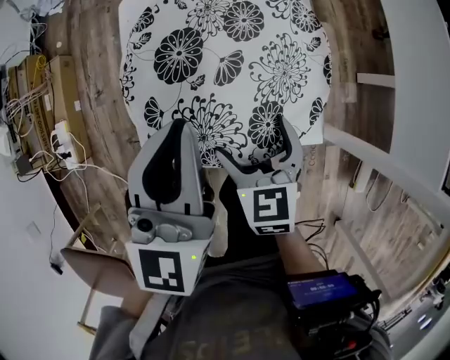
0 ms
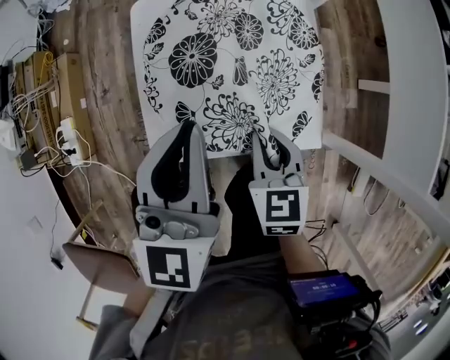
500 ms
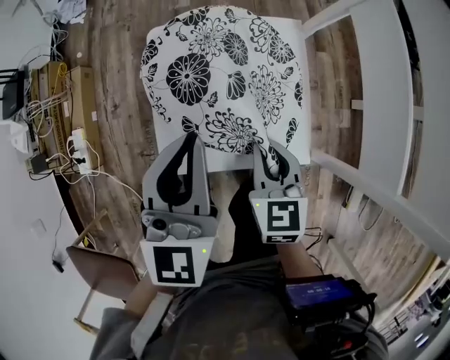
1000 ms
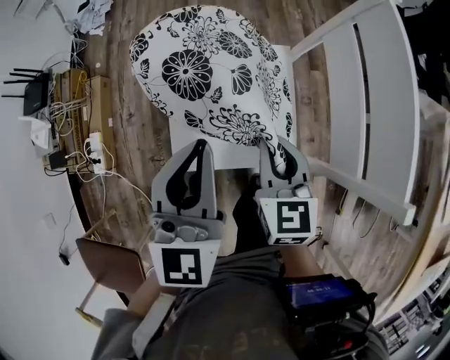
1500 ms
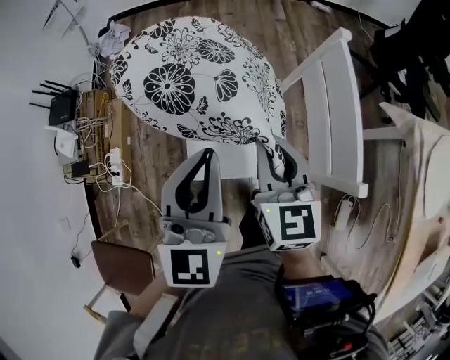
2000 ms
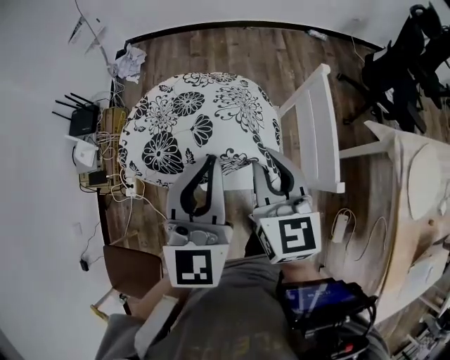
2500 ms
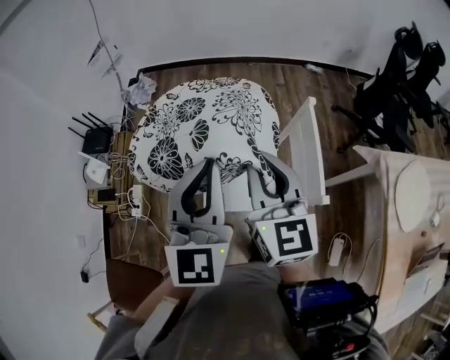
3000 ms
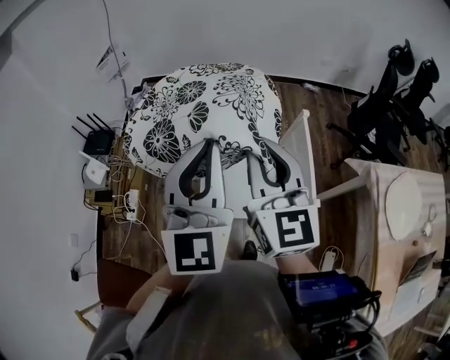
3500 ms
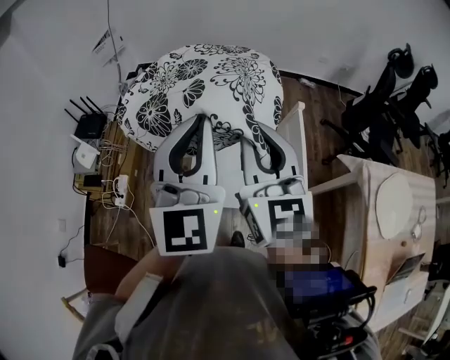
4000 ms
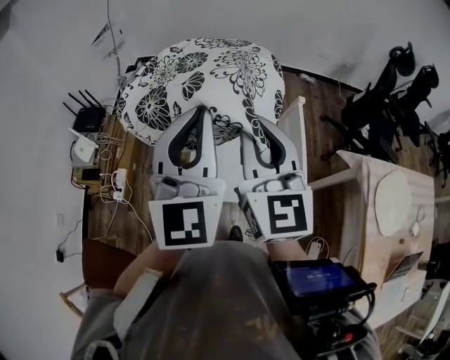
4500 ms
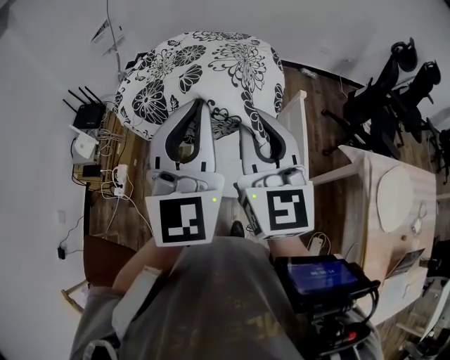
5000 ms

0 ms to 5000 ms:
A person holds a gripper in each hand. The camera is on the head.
0 ms to 2500 ms: Both grippers move upward, some 50 cm. The right gripper swivels roughly 30 degrees, and closes up.
2500 ms to 5000 ms: Both grippers move upward, some 15 cm.

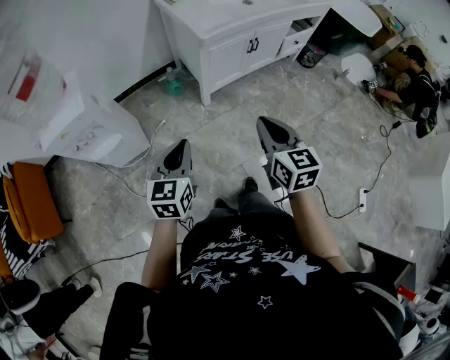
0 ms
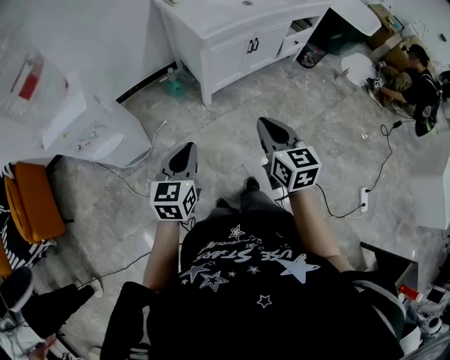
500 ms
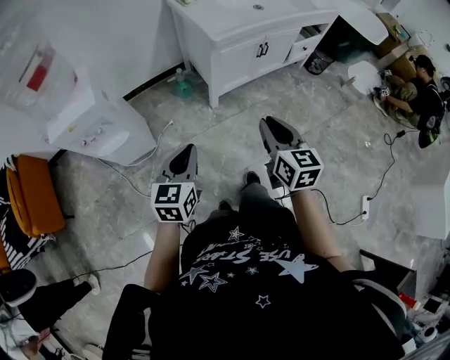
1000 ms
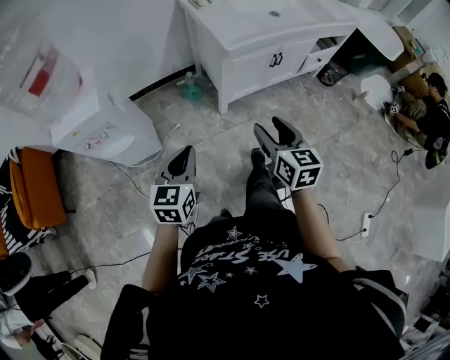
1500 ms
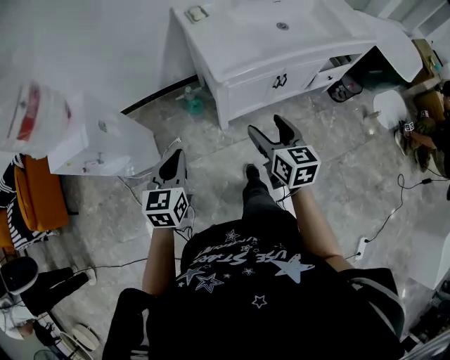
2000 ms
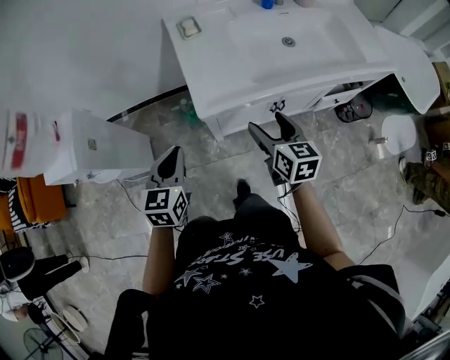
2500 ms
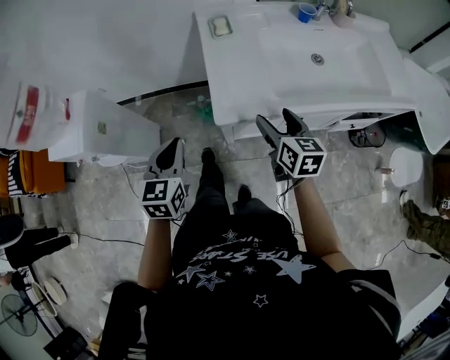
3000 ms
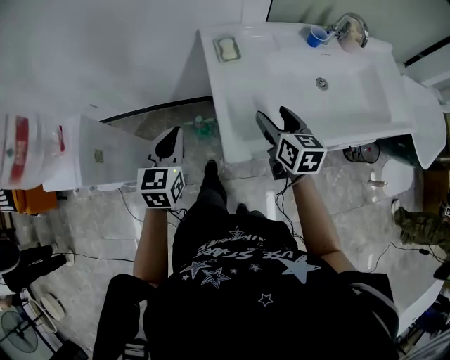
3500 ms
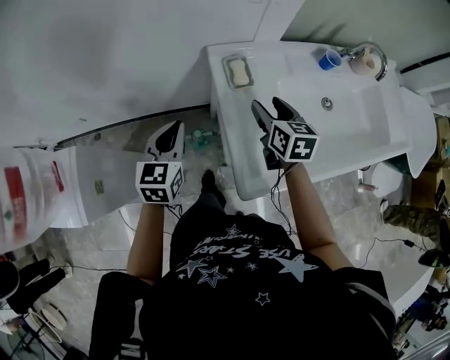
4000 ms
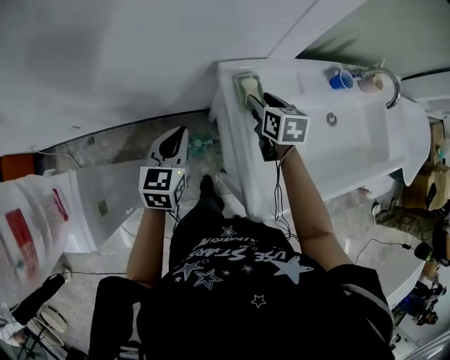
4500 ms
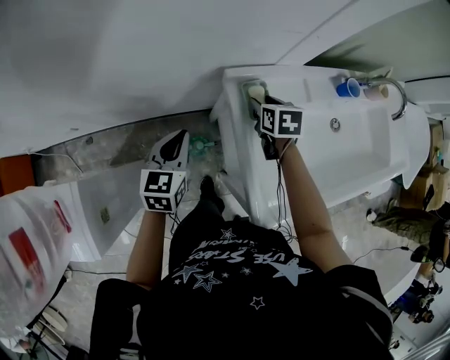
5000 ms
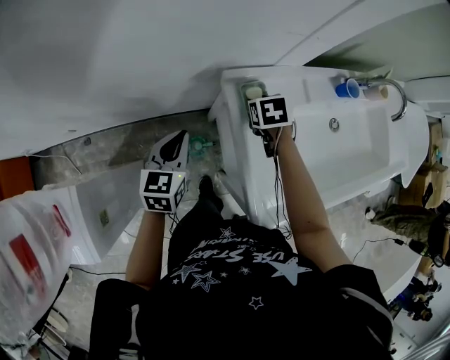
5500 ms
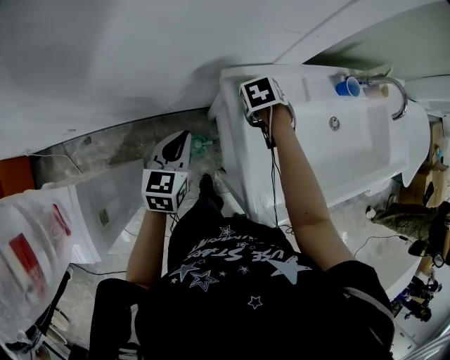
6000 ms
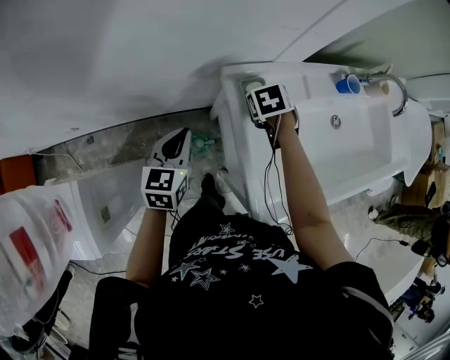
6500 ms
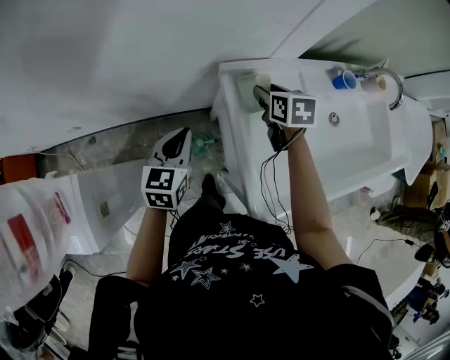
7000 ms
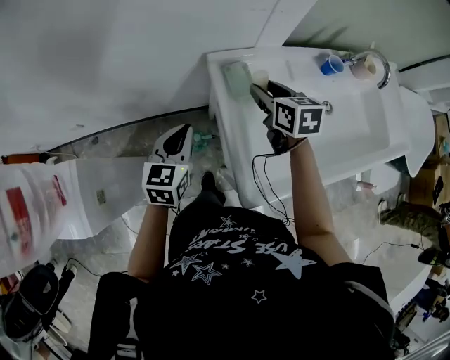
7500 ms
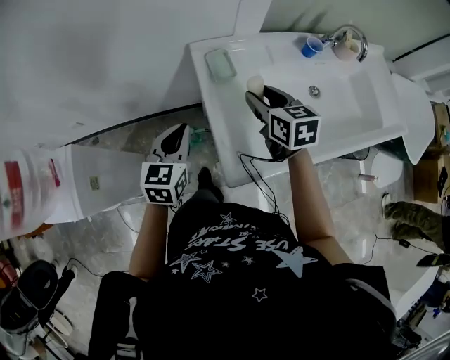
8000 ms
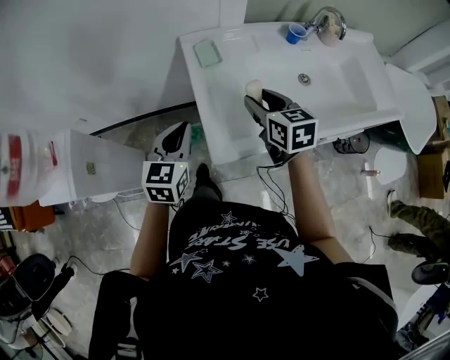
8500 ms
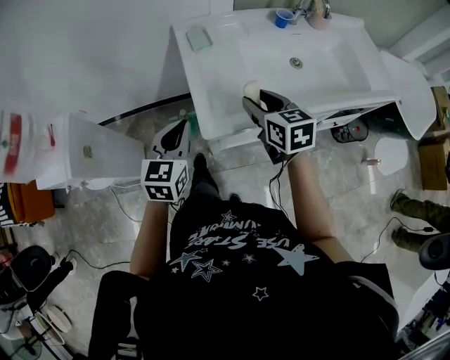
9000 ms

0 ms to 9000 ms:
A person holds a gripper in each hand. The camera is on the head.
0 ms to 2000 ms: The grippers both shift forward by some 20 cm. The right gripper opens its fingers.
2000 ms to 4500 ms: The two grippers travel together, forward, approximately 60 cm. The right gripper changes its angle by roughly 20 degrees, and closes its fingers.
7000 ms to 9000 ms: The right gripper travels backward by about 35 cm, and rotates approximately 20 degrees; the left gripper shifts about 30 cm backward and to the right.

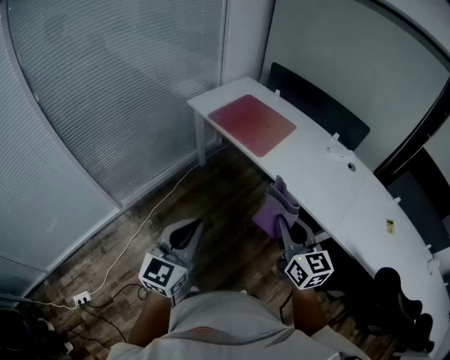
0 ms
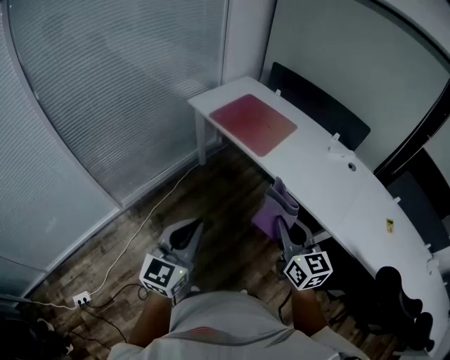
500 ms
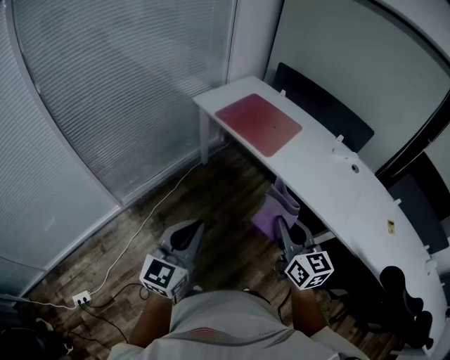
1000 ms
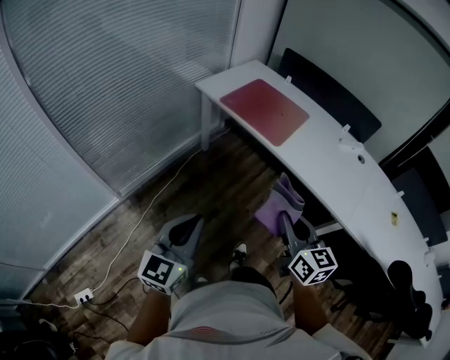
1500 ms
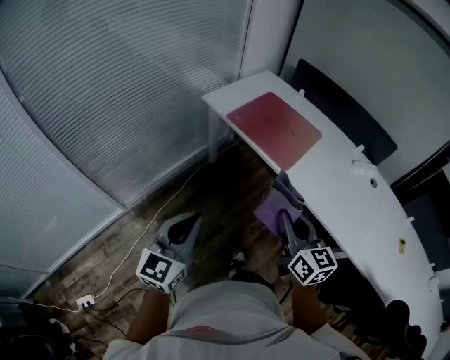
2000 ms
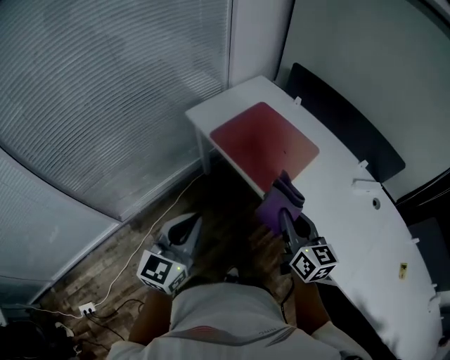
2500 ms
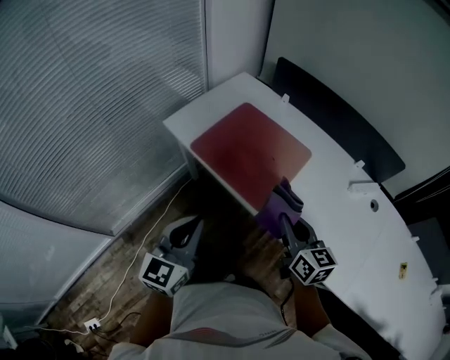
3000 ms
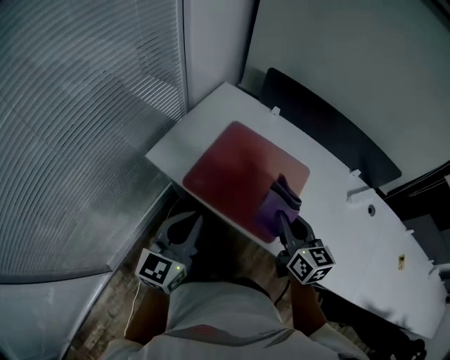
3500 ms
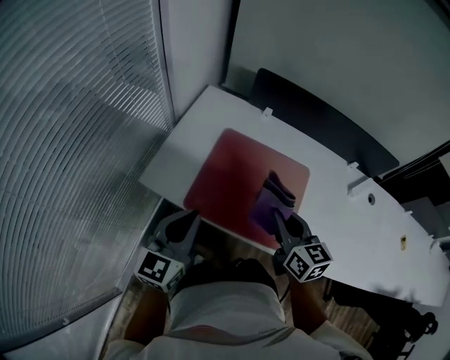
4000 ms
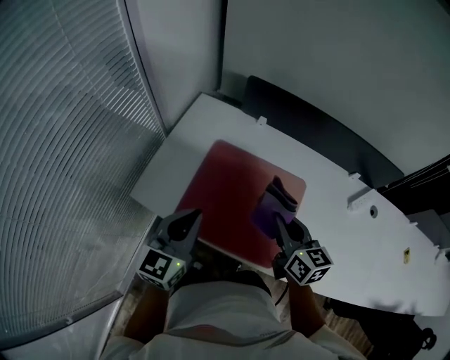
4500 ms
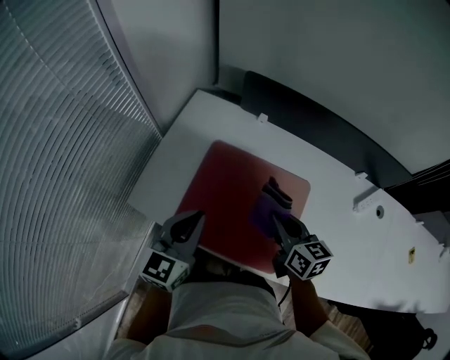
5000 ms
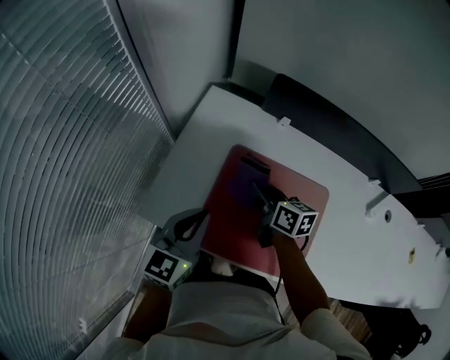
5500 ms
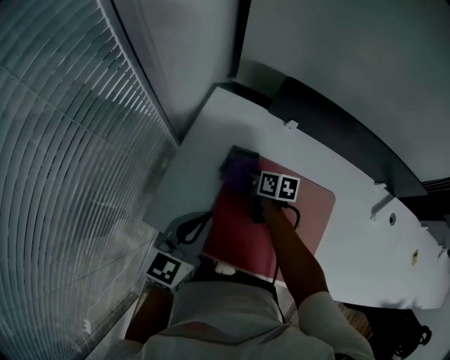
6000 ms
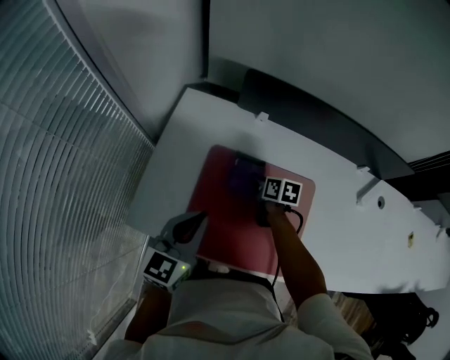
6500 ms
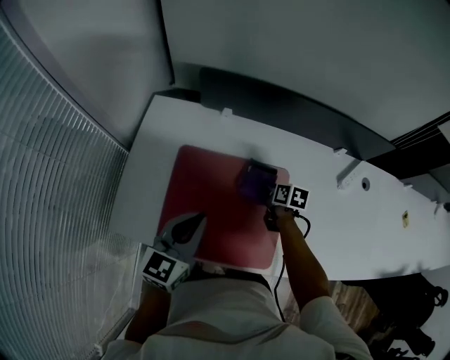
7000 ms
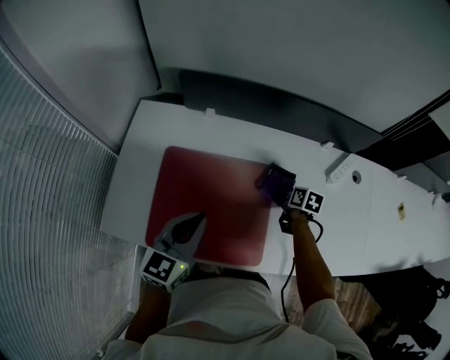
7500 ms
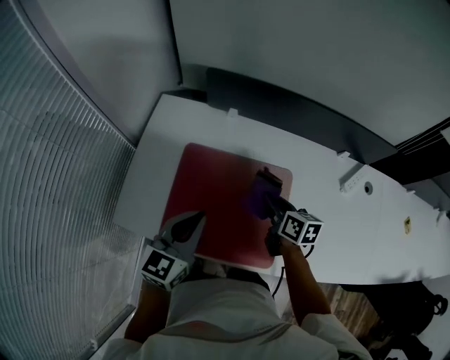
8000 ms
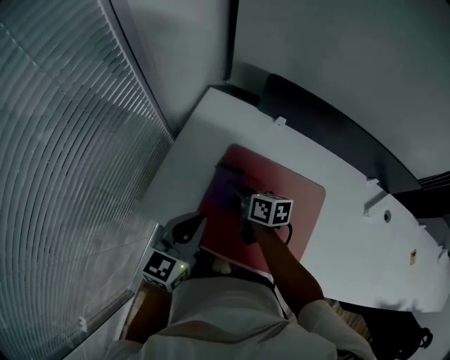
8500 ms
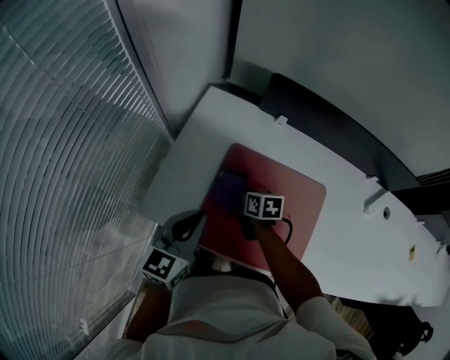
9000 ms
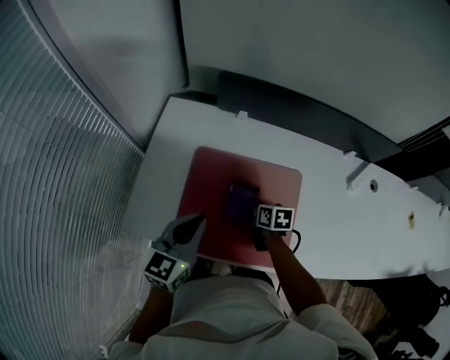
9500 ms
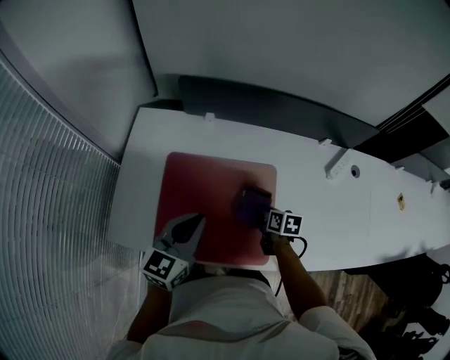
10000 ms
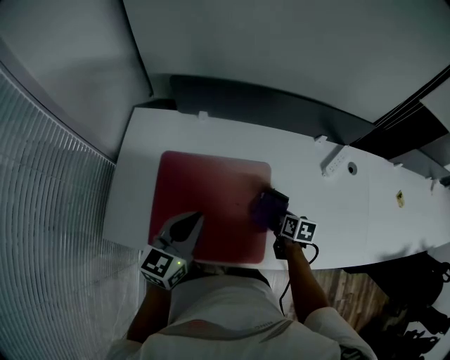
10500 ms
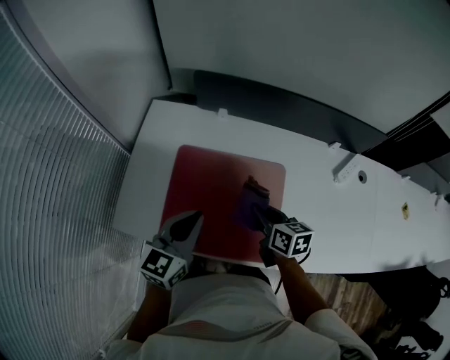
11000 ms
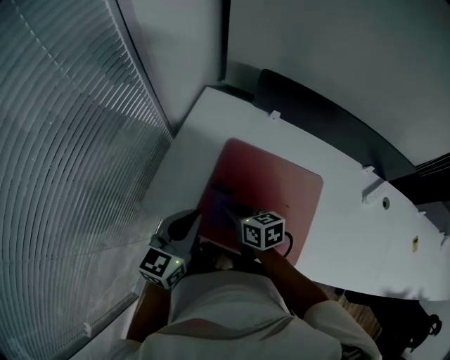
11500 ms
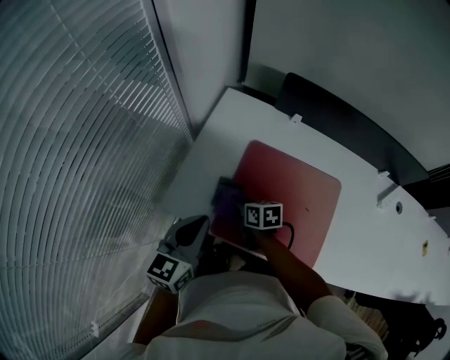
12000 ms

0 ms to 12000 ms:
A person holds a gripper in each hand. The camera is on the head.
0 ms to 2000 ms: Both grippers travel together forward and to the left, roughly 20 cm.
2000 ms to 4000 ms: Both grippers are carried forward, approximately 60 cm. The right gripper swivels approximately 20 degrees, while the left gripper turns by approximately 20 degrees.
4000 ms to 6000 ms: The right gripper travels forward and downward by some 40 cm, and turns by about 40 degrees, while the left gripper moves forward, about 20 cm.
6000 ms to 8000 ms: The right gripper shifts some 30 cm to the right and backward. Meanwhile the left gripper travels to the right by about 15 cm.
8000 ms to 10000 ms: The left gripper travels to the left and back again, roughly 15 cm each way; the right gripper goes roughly 10 cm downward, goes to the left and returns, some 25 cm each way, and swivels roughly 20 degrees.
10000 ms to 12000 ms: The right gripper travels upward and back again, roughly 10 cm each way, and swivels about 30 degrees. Meanwhile the left gripper ends up about 25 cm from where it was, and turns by some 20 degrees.

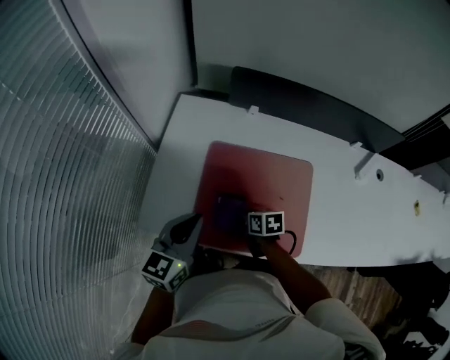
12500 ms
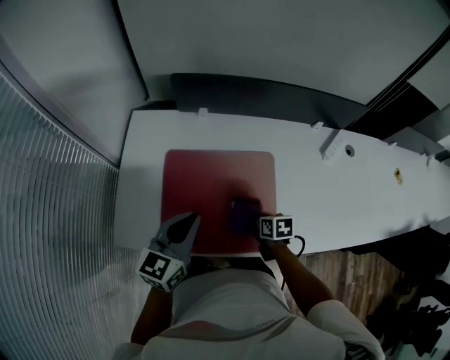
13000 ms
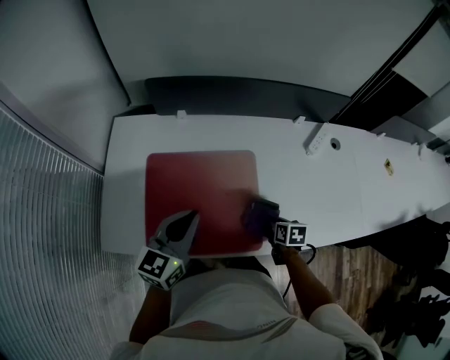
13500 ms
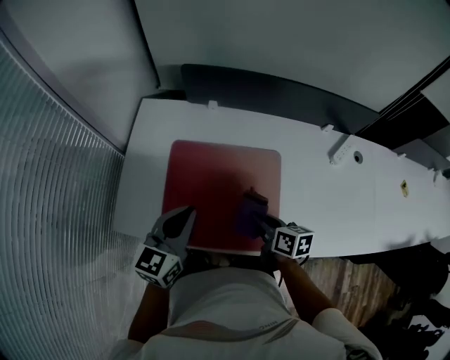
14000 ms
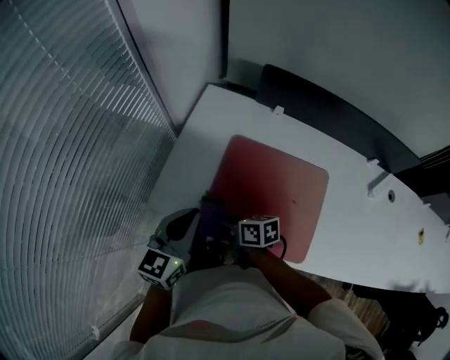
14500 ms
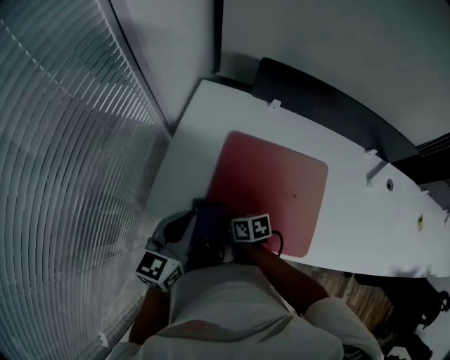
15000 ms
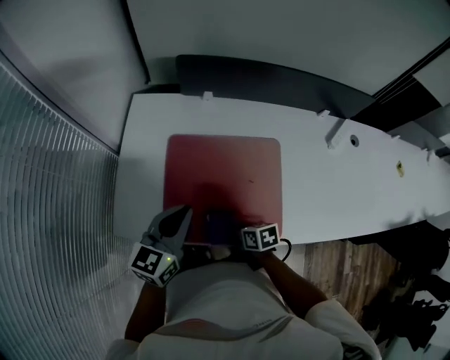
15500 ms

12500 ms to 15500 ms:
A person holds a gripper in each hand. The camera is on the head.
12500 ms to 14000 ms: The left gripper moves to the right, about 10 cm. Meanwhile the right gripper moves to the right and upward, about 20 cm.
14000 ms to 15500 ms: The right gripper goes roughly 15 cm to the left and downward. Meanwhile the left gripper reaches approximately 20 cm to the left, then returns.
